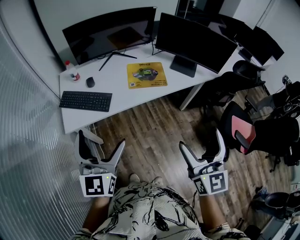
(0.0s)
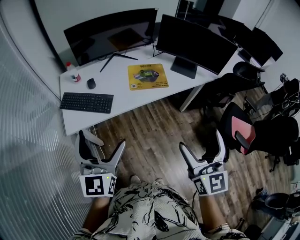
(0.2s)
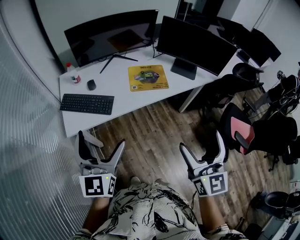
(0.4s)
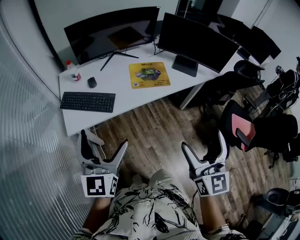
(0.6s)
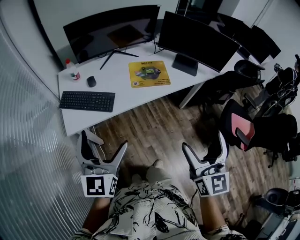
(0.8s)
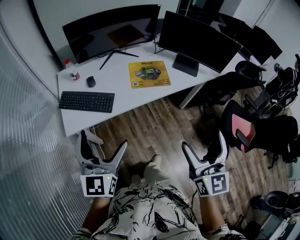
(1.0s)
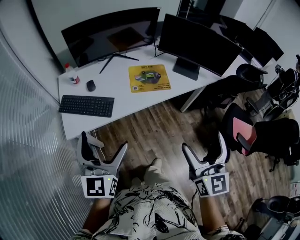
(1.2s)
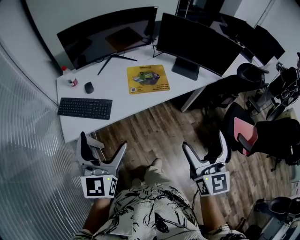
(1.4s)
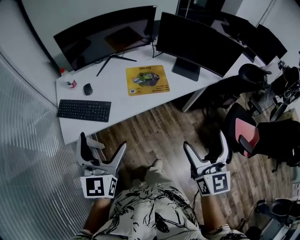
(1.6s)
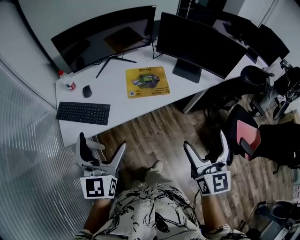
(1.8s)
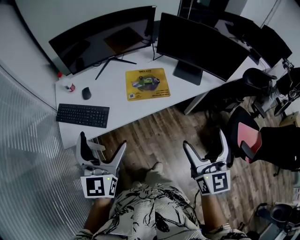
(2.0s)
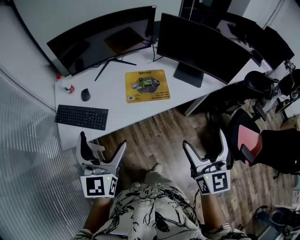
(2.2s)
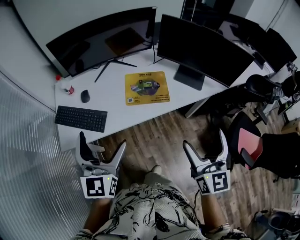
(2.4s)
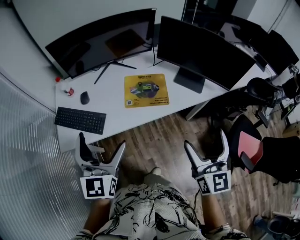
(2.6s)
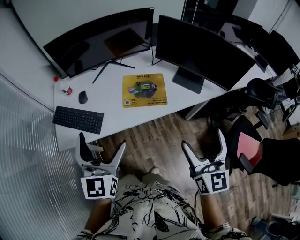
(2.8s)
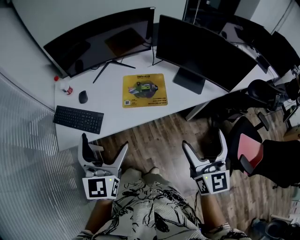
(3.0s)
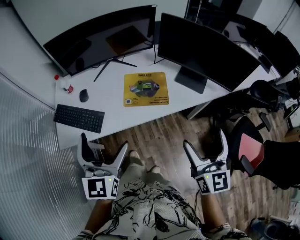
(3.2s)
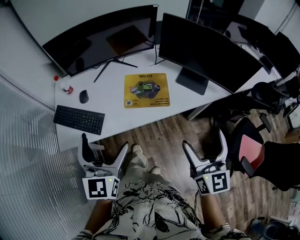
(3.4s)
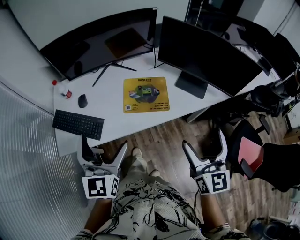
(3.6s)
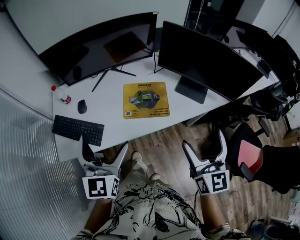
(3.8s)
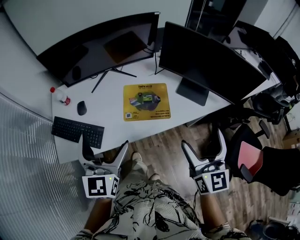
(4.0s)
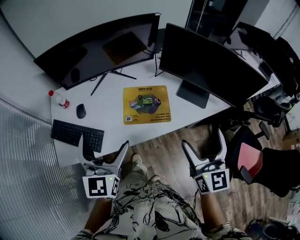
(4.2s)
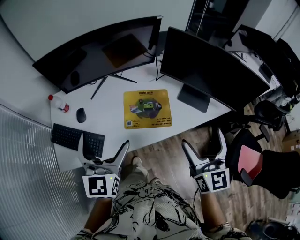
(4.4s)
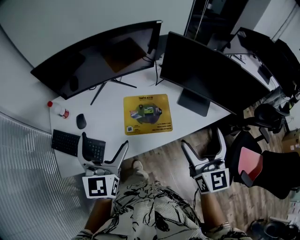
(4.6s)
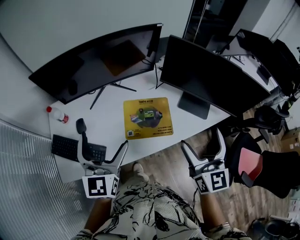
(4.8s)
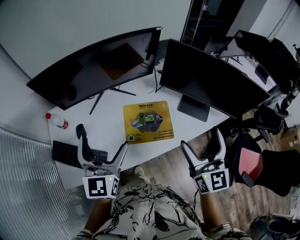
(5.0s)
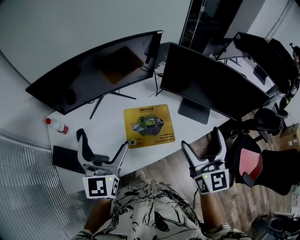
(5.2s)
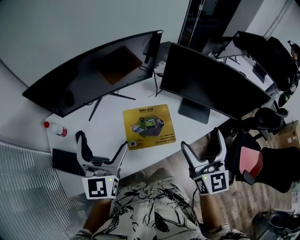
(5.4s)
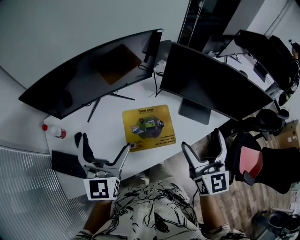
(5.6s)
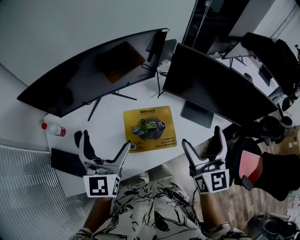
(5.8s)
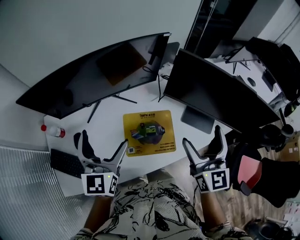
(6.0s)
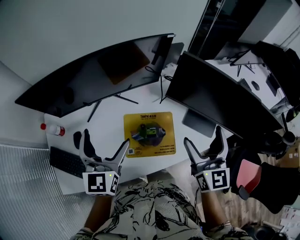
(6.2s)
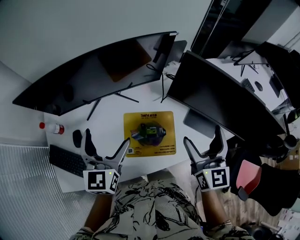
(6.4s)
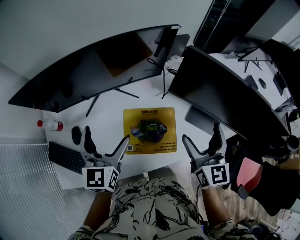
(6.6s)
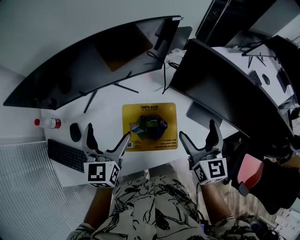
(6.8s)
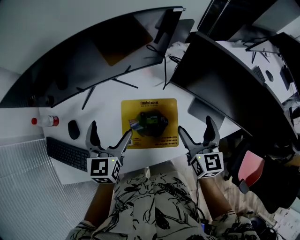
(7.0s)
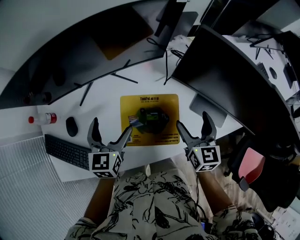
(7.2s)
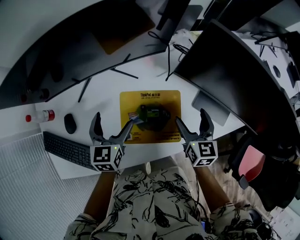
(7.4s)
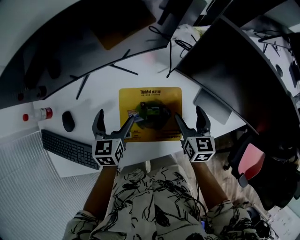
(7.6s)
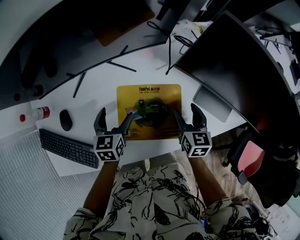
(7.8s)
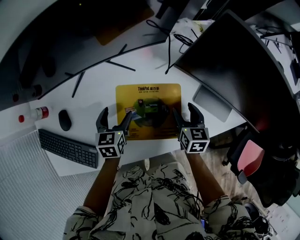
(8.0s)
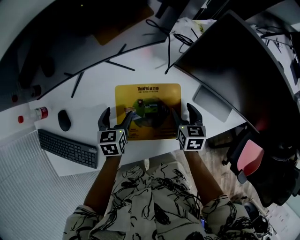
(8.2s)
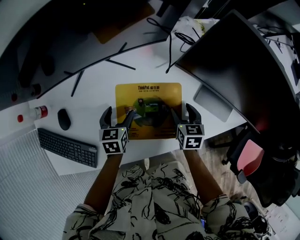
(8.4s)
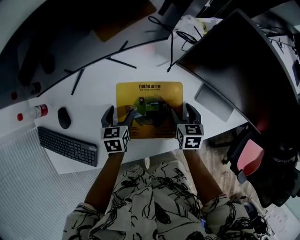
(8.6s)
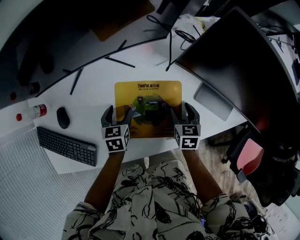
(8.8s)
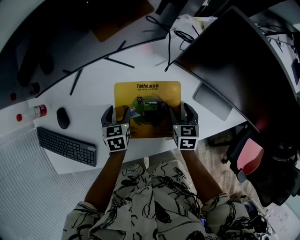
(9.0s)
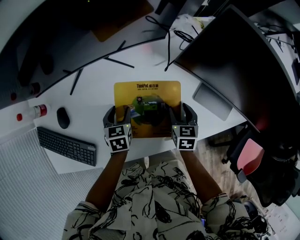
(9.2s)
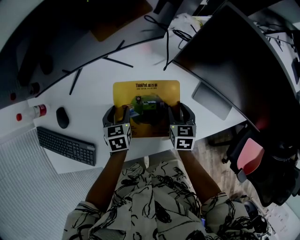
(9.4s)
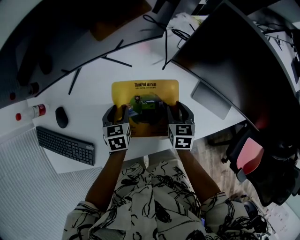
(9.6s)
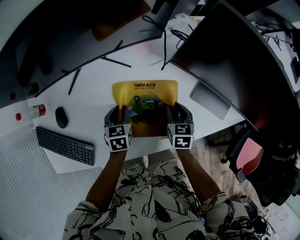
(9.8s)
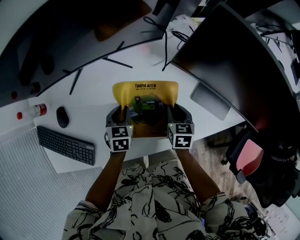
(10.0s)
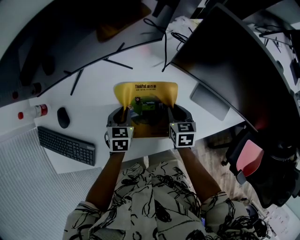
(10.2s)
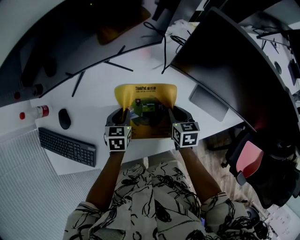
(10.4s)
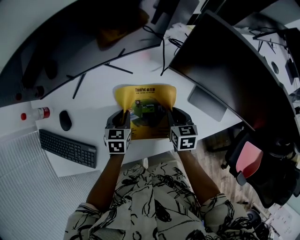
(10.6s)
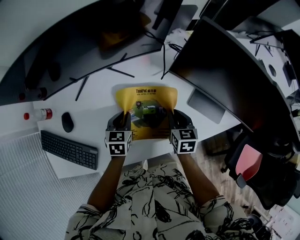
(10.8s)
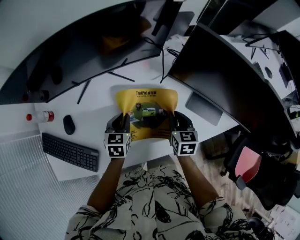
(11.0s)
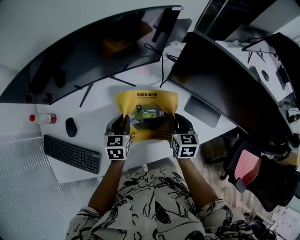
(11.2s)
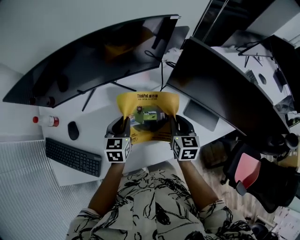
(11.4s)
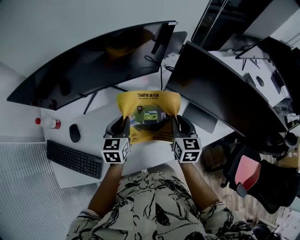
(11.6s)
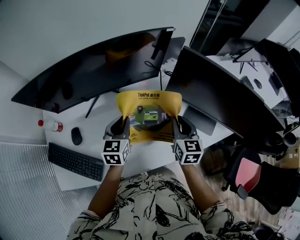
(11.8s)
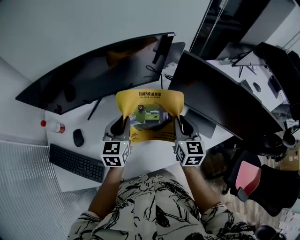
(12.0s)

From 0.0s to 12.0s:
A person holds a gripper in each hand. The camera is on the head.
From 0.0s to 1.6s: Both grippers move forward, some 10 cm.
From 1.6s to 3.0s: The left gripper moves to the right and forward, approximately 15 cm. Meanwhile the right gripper is displaced forward and to the right by about 15 cm.
From 3.0s to 4.4s: The grippers both shift forward by about 15 cm.
From 4.4s to 6.0s: The grippers both shift forward by some 15 cm.
From 6.0s to 7.6s: The grippers both shift downward by approximately 25 cm. The left gripper rotates some 30 degrees. The right gripper points its fingers about 30 degrees further downward.
From 7.6s to 9.0s: Both grippers travel together downward, about 10 cm. The left gripper closes.
From 9.0s to 10.4s: The grippers stay close to where they were, moving slightly.
From 10.4s to 12.0s: Both grippers travel together upward, approximately 20 cm. The right gripper swivels approximately 30 degrees; the left gripper turns by about 30 degrees.

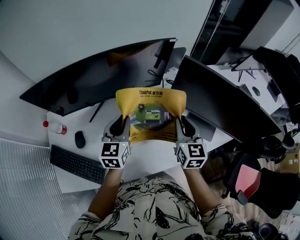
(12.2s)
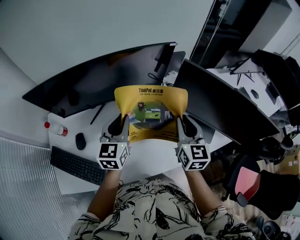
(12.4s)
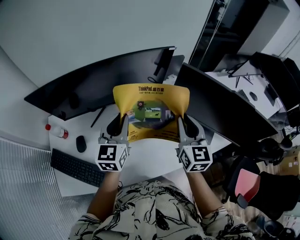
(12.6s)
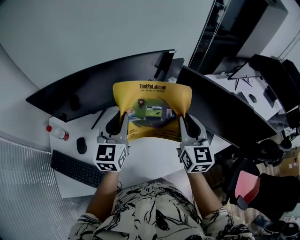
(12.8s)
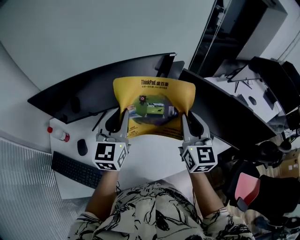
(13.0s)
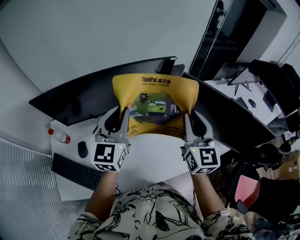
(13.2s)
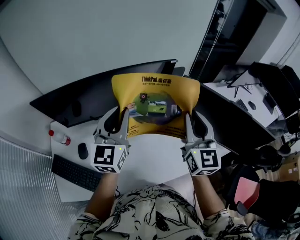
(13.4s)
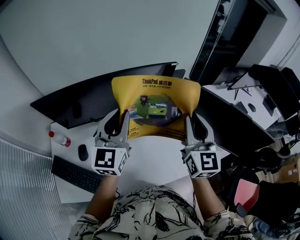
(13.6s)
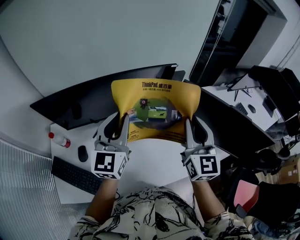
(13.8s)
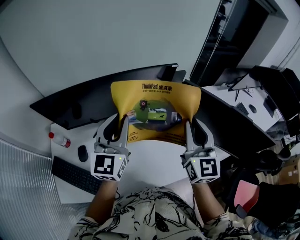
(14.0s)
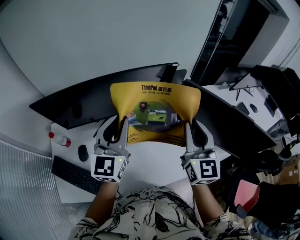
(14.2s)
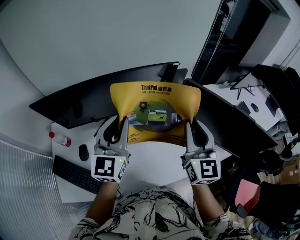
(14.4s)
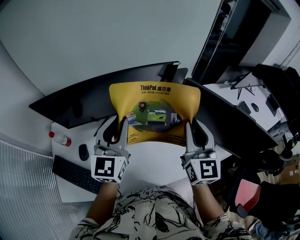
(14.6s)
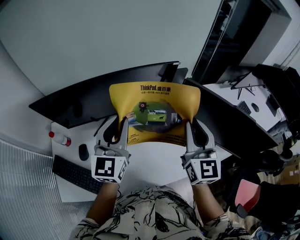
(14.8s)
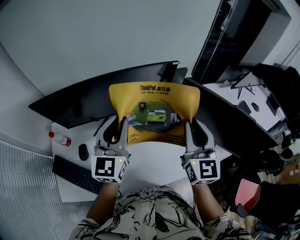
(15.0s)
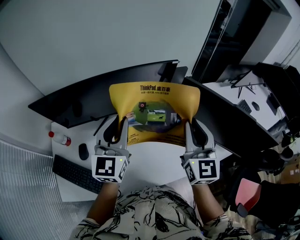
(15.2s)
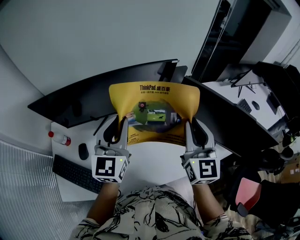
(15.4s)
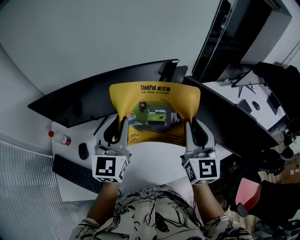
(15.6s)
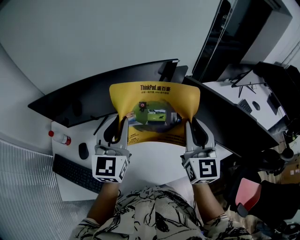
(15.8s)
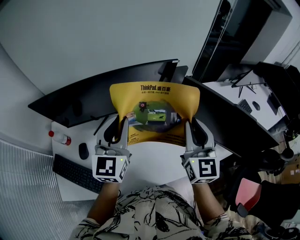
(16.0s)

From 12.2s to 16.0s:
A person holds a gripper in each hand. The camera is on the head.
From 12.2s to 13.4s: Both grippers move upward, approximately 15 cm. The left gripper rotates roughly 20 degrees.
From 13.4s to 14.8s: There are only small adjustments of the grippers.
From 14.8s to 16.0s: Both grippers stay about where they are.

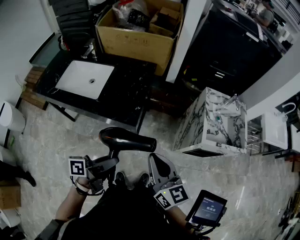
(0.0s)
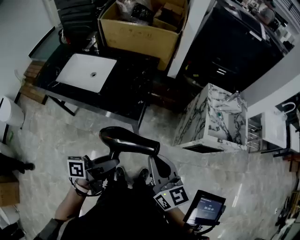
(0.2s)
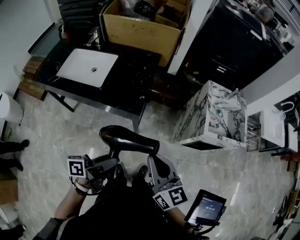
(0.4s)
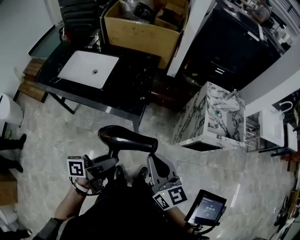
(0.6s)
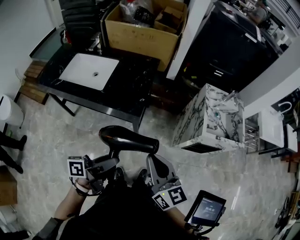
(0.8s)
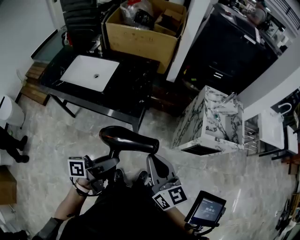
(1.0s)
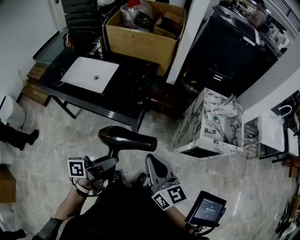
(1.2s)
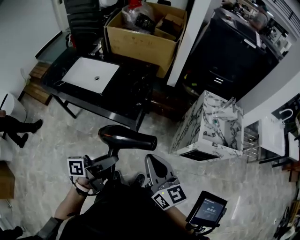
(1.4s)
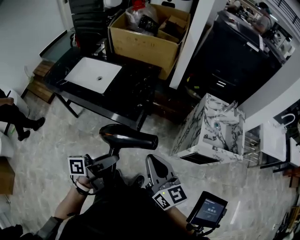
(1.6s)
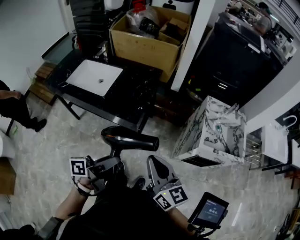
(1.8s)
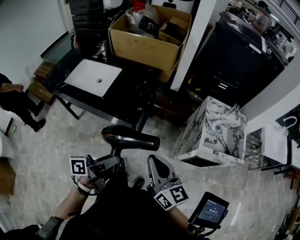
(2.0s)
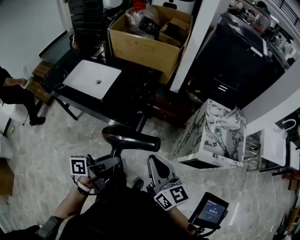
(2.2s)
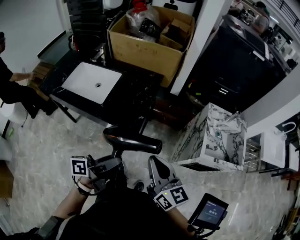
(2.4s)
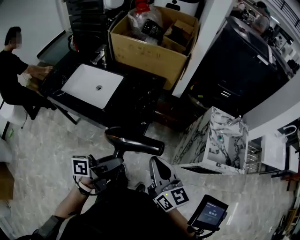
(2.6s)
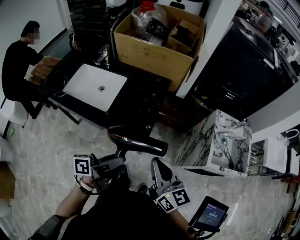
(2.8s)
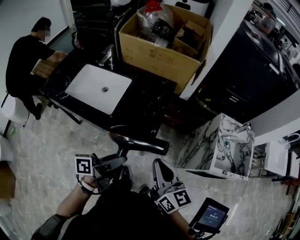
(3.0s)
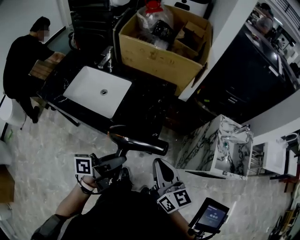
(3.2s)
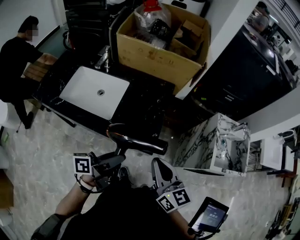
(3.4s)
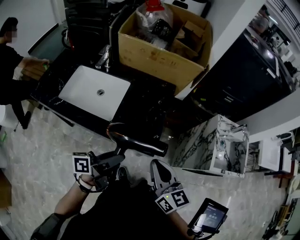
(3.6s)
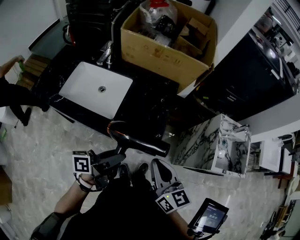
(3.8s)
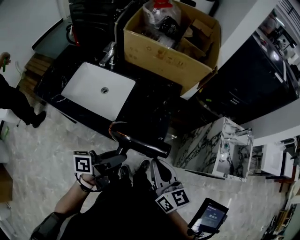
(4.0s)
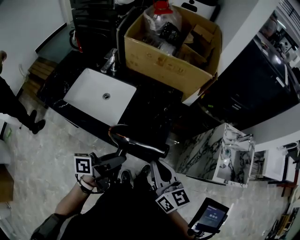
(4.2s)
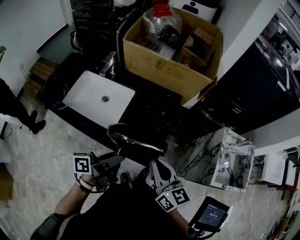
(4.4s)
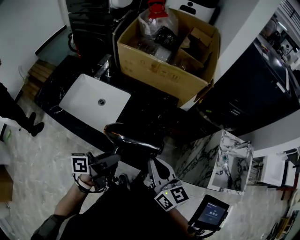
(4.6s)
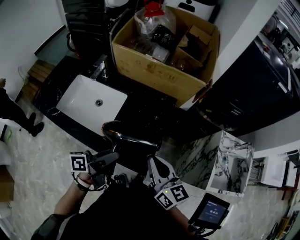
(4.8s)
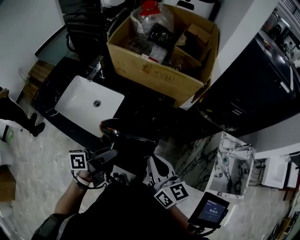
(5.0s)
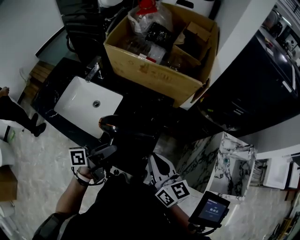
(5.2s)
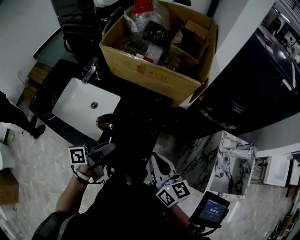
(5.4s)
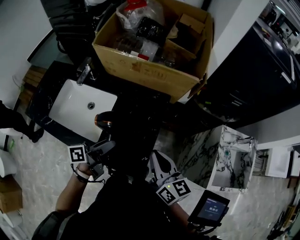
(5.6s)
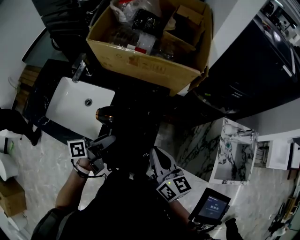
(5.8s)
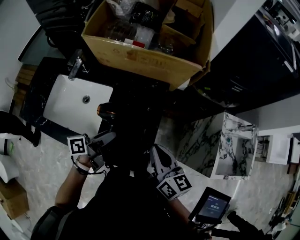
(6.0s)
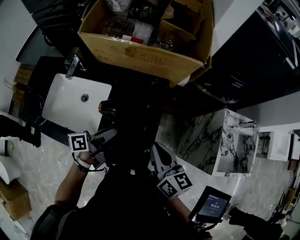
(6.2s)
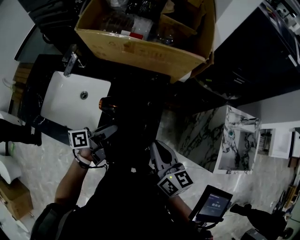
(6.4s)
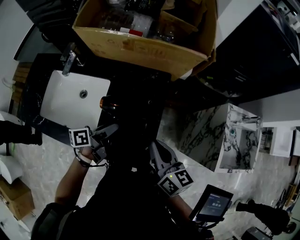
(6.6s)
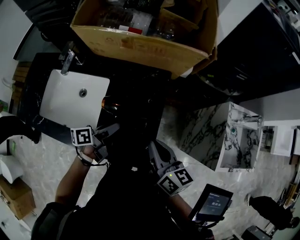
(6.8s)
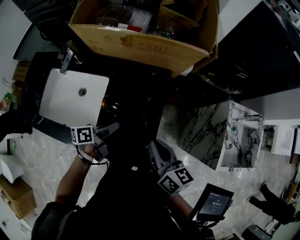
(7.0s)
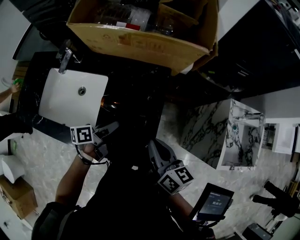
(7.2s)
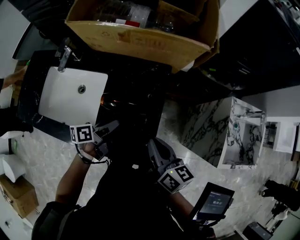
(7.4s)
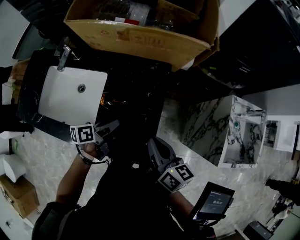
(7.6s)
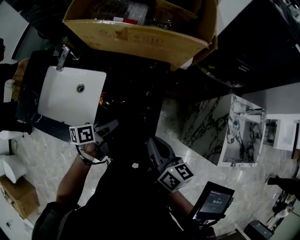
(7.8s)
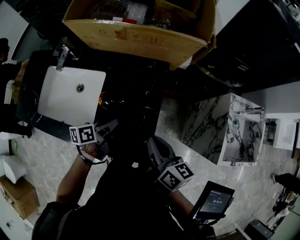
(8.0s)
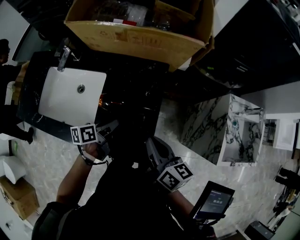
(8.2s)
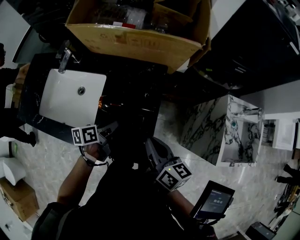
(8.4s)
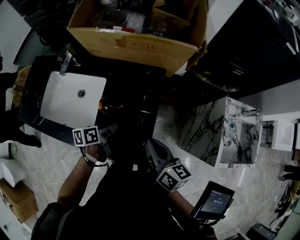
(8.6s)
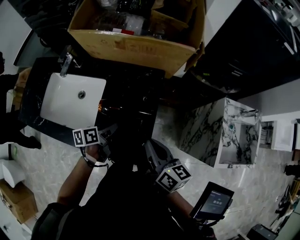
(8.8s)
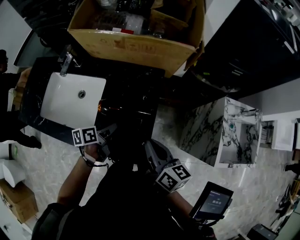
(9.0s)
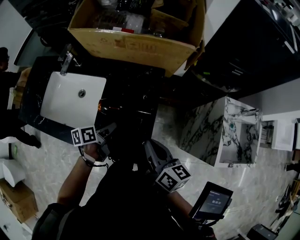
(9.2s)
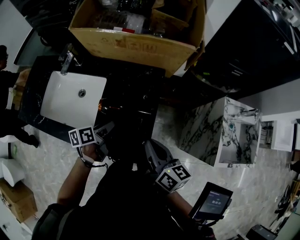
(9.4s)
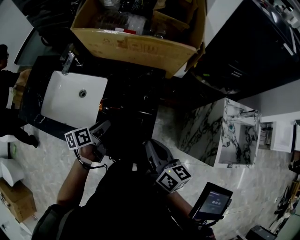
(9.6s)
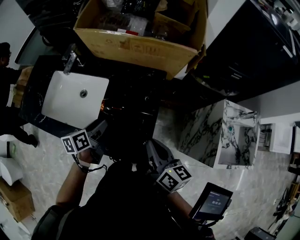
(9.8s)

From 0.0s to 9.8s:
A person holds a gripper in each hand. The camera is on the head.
From 0.0s to 1.4s: The left gripper changes place by about 5 cm, while the right gripper travels backward by about 5 cm.
From 1.4s to 2.8s: Both grippers move forward and to the left, approximately 15 cm.
From 2.8s to 4.2s: Both grippers move to the left and forward, roughly 15 cm.
From 4.2s to 5.6s: The left gripper heads forward, covering about 15 cm, while the right gripper goes some 15 cm forward and to the right.
From 5.6s to 7.0s: The right gripper goes roughly 5 cm downward. The left gripper moves downward, about 10 cm.
From 7.0s to 8.4s: The grippers move only a little.
From 8.4s to 9.8s: The left gripper moves to the left and upward, about 10 cm.
